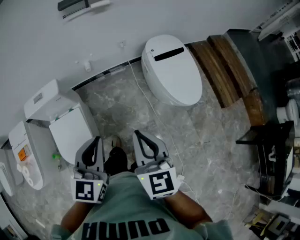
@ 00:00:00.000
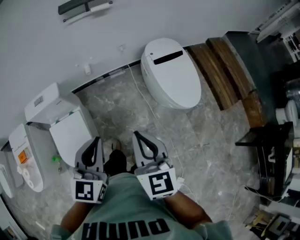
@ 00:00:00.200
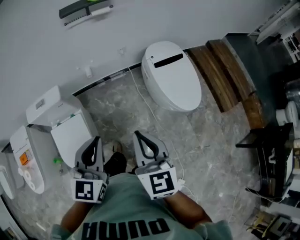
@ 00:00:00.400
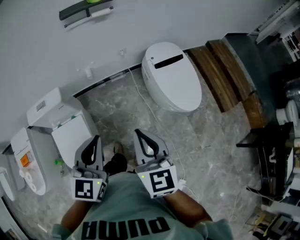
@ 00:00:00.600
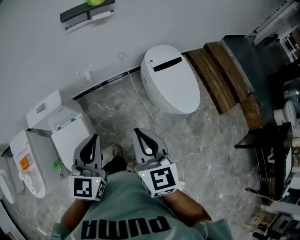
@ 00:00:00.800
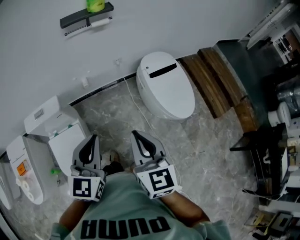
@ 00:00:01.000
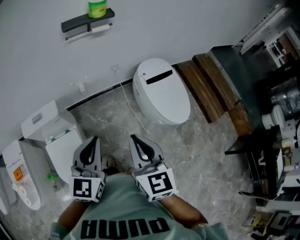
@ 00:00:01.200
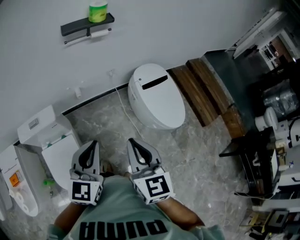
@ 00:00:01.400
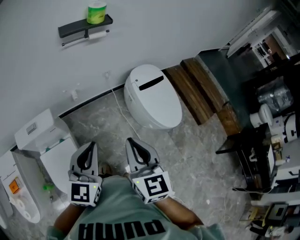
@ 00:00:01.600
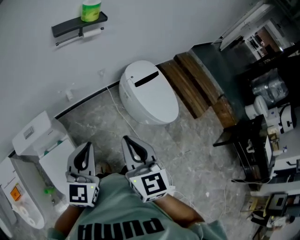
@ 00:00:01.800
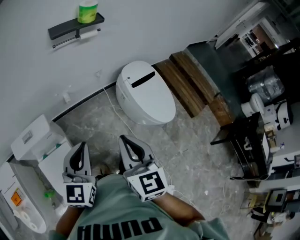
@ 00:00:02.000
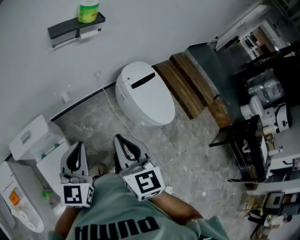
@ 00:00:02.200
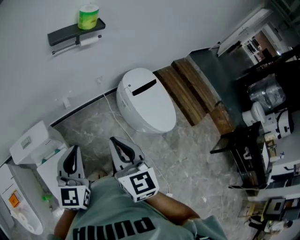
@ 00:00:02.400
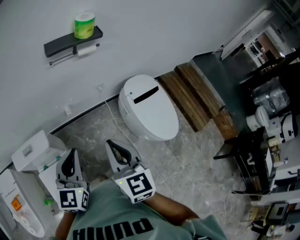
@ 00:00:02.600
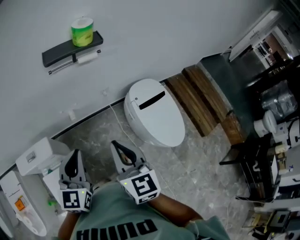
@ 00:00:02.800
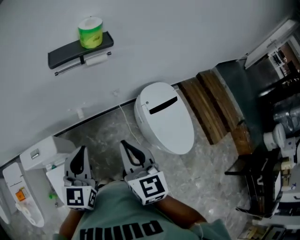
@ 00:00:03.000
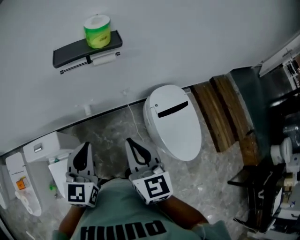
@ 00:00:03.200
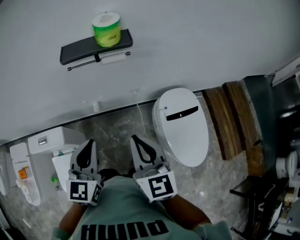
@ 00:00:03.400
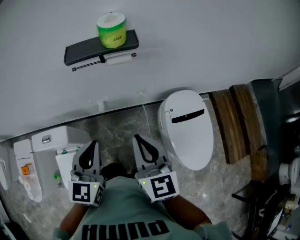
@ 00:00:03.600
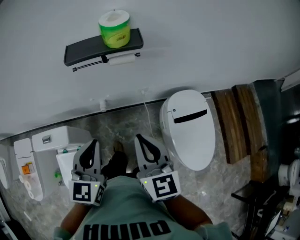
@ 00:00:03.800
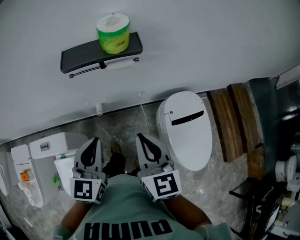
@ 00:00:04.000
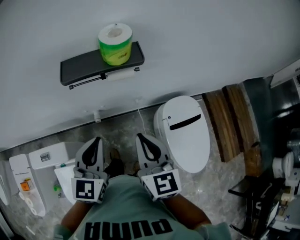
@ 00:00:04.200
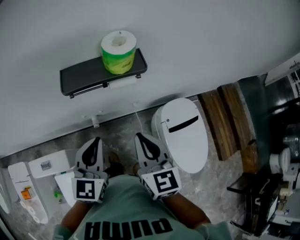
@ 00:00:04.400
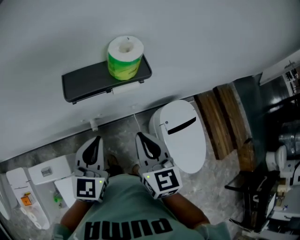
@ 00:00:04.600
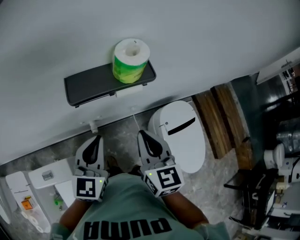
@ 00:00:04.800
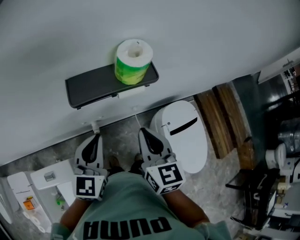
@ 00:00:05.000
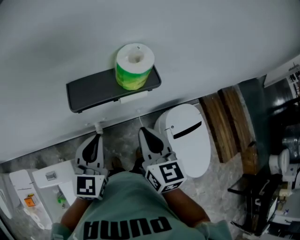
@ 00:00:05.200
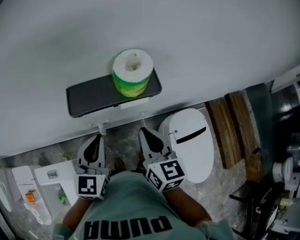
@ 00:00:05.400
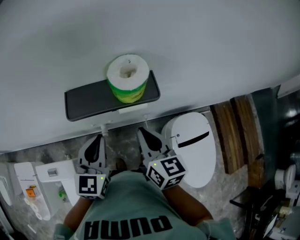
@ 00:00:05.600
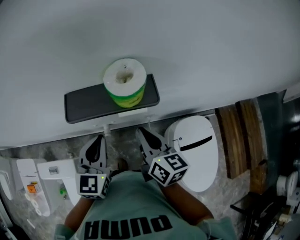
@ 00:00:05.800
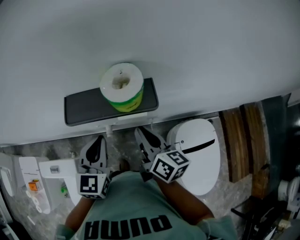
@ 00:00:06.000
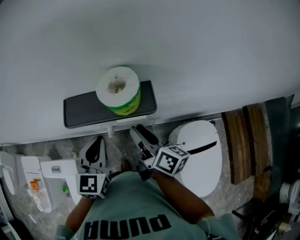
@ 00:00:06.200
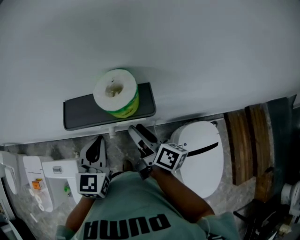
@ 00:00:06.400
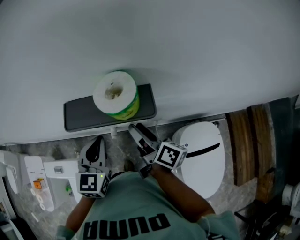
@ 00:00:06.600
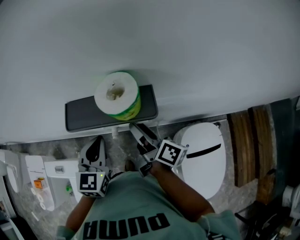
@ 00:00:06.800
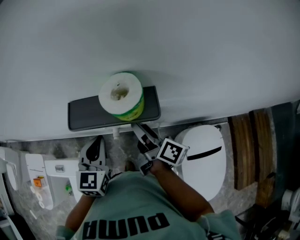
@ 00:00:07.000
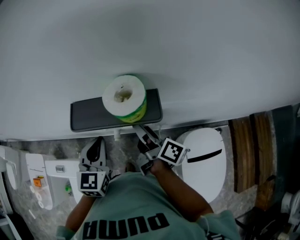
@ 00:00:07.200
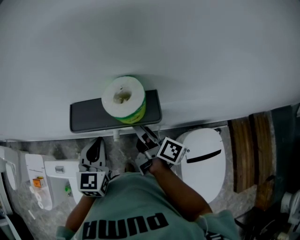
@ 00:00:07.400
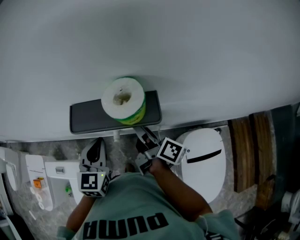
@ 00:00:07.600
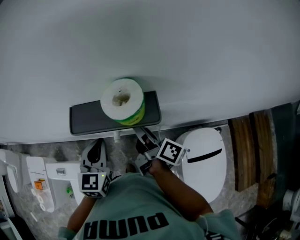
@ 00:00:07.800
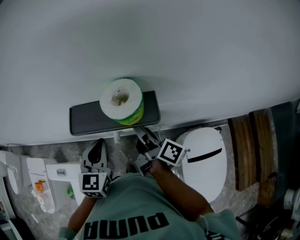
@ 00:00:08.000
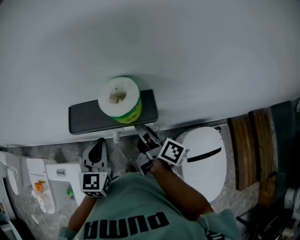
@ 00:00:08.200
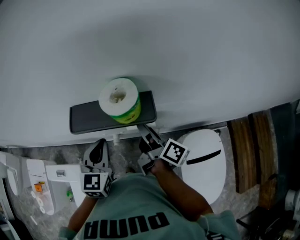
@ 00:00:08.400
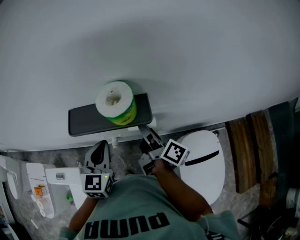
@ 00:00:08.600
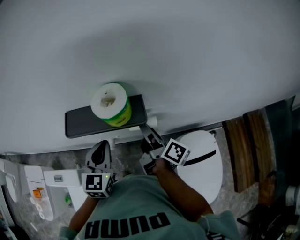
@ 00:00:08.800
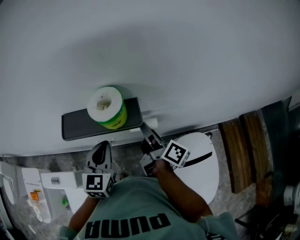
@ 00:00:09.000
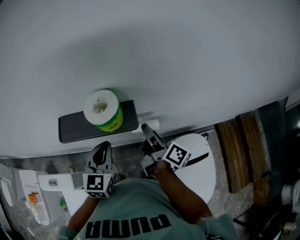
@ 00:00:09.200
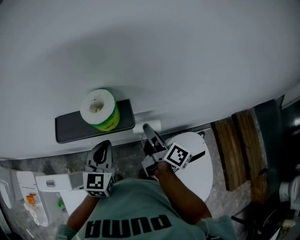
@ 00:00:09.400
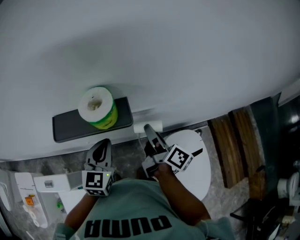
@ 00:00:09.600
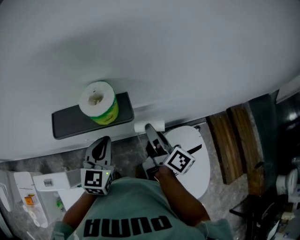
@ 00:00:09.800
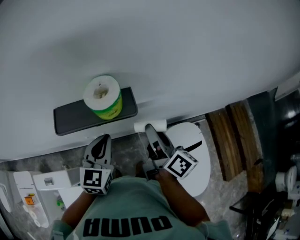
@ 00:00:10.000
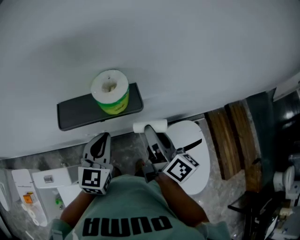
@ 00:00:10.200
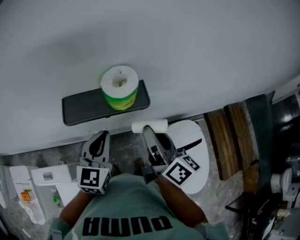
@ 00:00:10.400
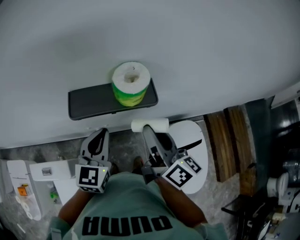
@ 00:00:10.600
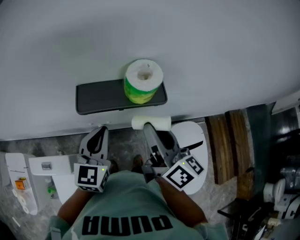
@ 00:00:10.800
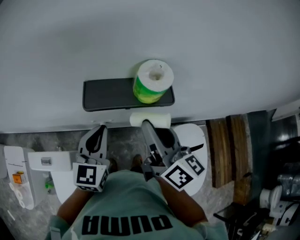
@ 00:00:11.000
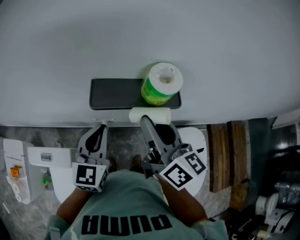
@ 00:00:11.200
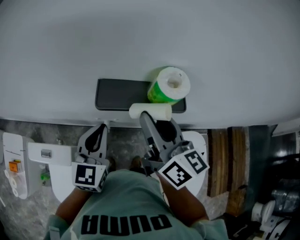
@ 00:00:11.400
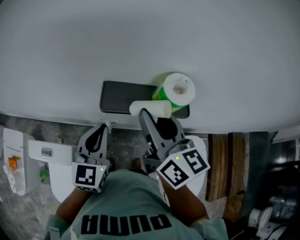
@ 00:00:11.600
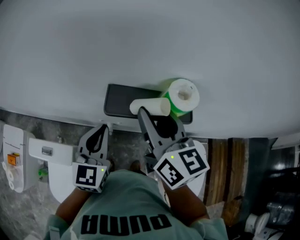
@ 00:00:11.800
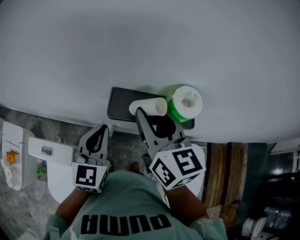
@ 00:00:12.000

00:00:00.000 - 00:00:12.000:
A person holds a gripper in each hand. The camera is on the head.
00:00:00.000 - 00:00:01.600: The left gripper goes some 10 cm to the left and forward; the right gripper goes approximately 10 cm to the left, forward and upward.
00:00:01.600 - 00:00:03.000: The two grippers go about 20 cm forward.
00:00:03.000 - 00:00:04.400: The grippers both shift forward by some 20 cm.
00:00:04.400 - 00:00:06.000: Both grippers move forward, some 15 cm. The right gripper swivels roughly 40 degrees.
00:00:06.000 - 00:00:07.600: The right gripper is displaced forward by some 5 cm, turns by about 40 degrees, and opens.
00:00:07.600 - 00:00:09.000: The two grippers go roughly 10 cm to the right.
00:00:09.000 - 00:00:10.400: The right gripper moves backward and upward, roughly 10 cm, and turns by some 30 degrees.
00:00:10.400 - 00:00:12.000: The left gripper goes some 15 cm to the left. The right gripper is displaced to the left, forward and upward by approximately 20 cm, and rotates approximately 40 degrees.

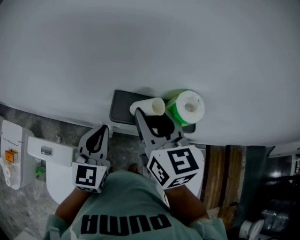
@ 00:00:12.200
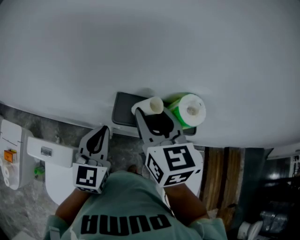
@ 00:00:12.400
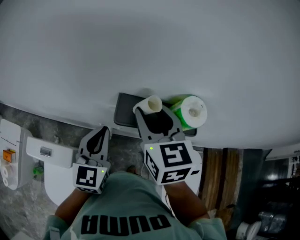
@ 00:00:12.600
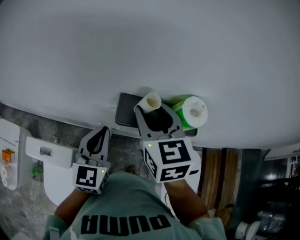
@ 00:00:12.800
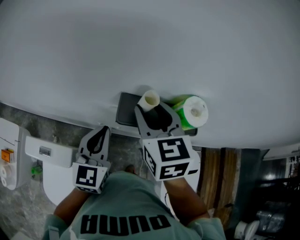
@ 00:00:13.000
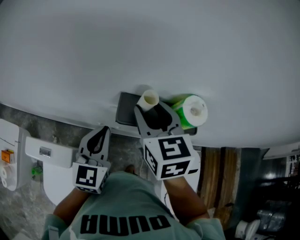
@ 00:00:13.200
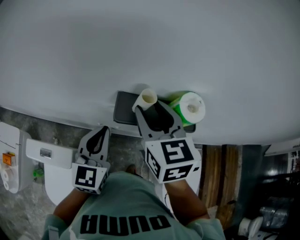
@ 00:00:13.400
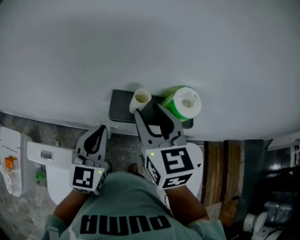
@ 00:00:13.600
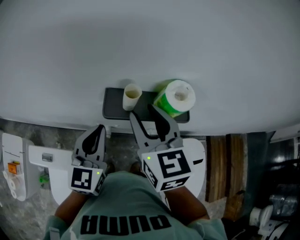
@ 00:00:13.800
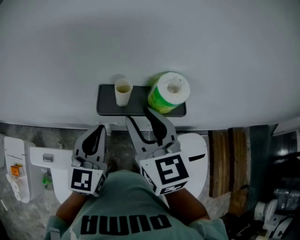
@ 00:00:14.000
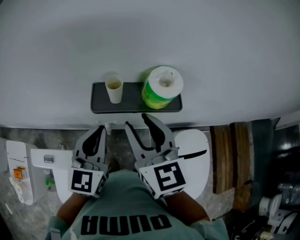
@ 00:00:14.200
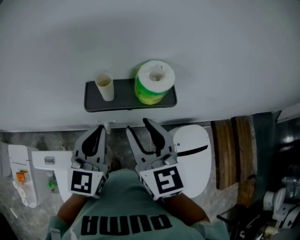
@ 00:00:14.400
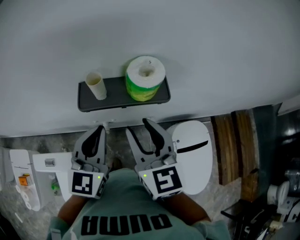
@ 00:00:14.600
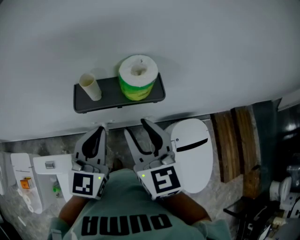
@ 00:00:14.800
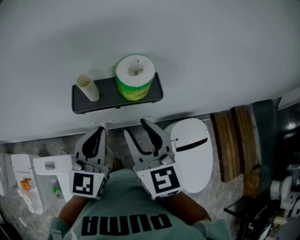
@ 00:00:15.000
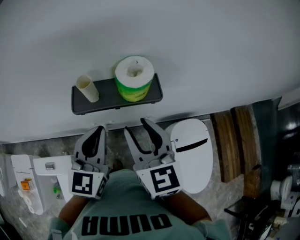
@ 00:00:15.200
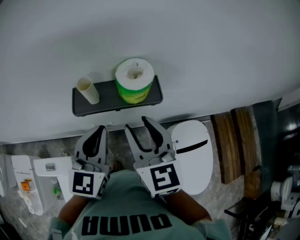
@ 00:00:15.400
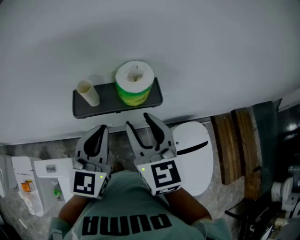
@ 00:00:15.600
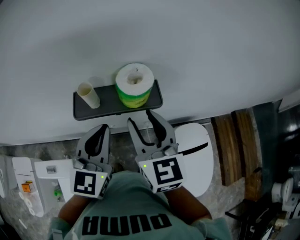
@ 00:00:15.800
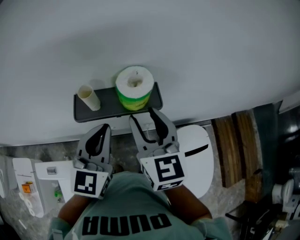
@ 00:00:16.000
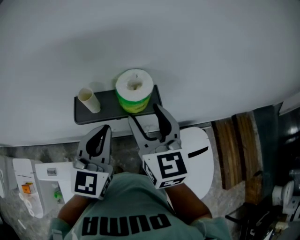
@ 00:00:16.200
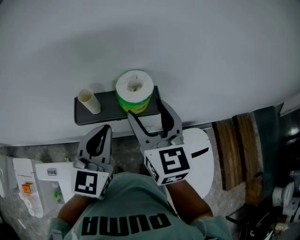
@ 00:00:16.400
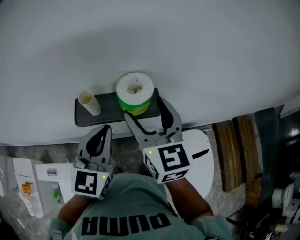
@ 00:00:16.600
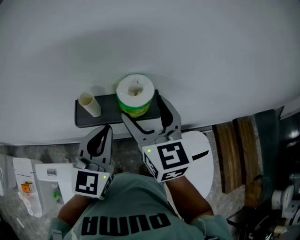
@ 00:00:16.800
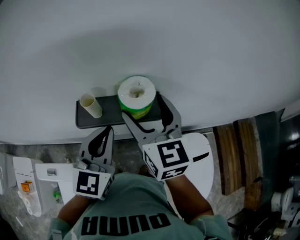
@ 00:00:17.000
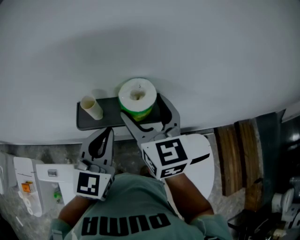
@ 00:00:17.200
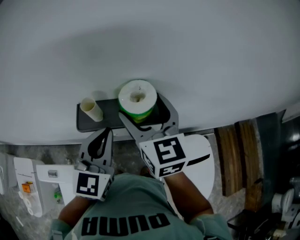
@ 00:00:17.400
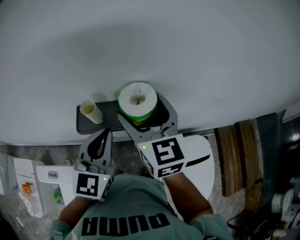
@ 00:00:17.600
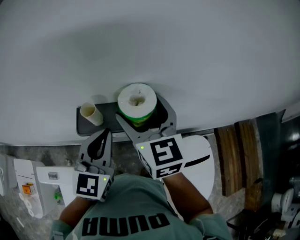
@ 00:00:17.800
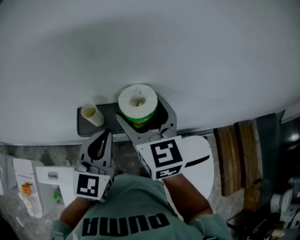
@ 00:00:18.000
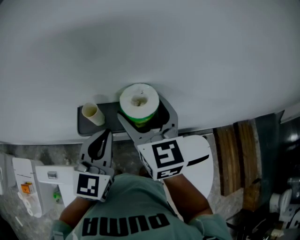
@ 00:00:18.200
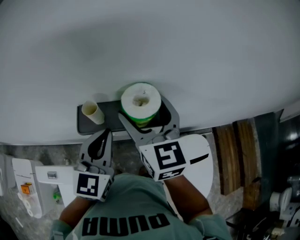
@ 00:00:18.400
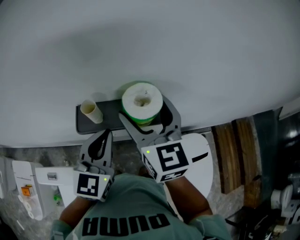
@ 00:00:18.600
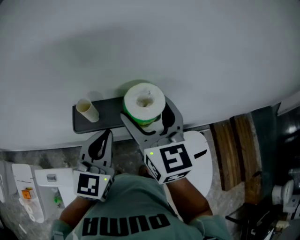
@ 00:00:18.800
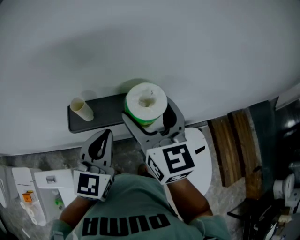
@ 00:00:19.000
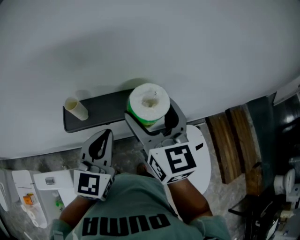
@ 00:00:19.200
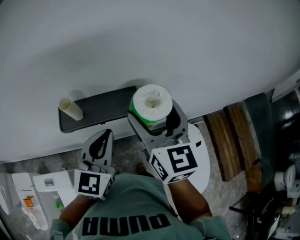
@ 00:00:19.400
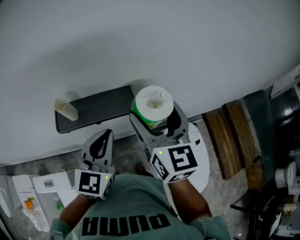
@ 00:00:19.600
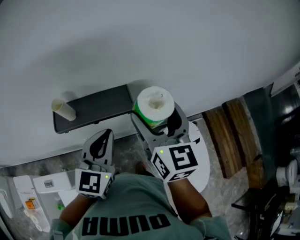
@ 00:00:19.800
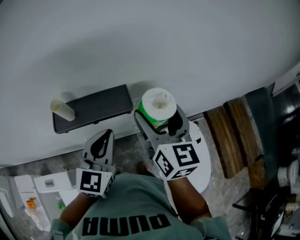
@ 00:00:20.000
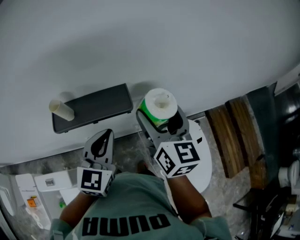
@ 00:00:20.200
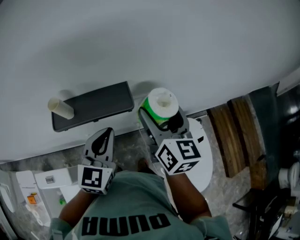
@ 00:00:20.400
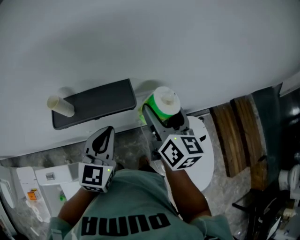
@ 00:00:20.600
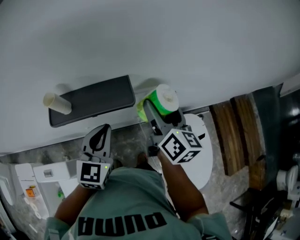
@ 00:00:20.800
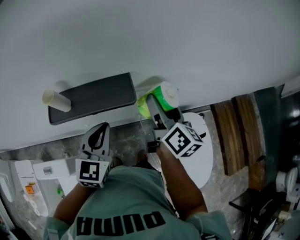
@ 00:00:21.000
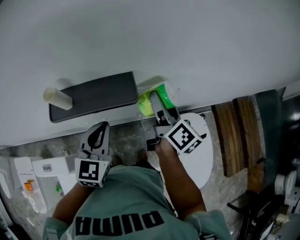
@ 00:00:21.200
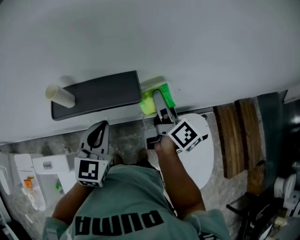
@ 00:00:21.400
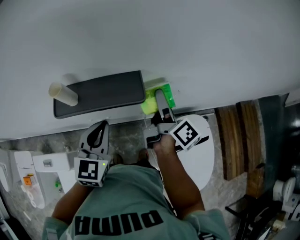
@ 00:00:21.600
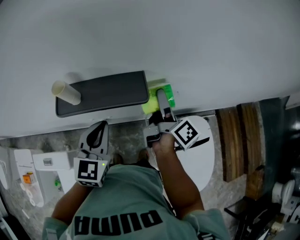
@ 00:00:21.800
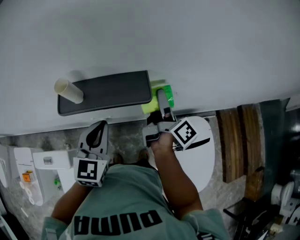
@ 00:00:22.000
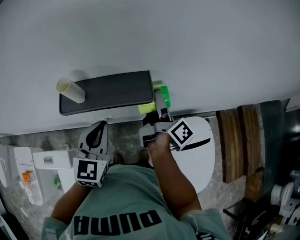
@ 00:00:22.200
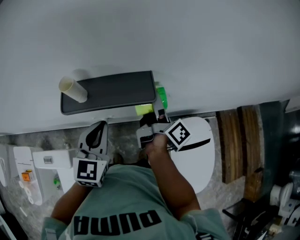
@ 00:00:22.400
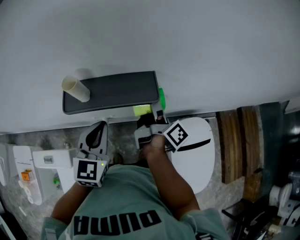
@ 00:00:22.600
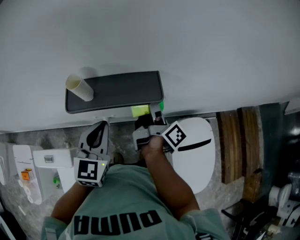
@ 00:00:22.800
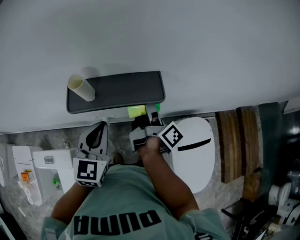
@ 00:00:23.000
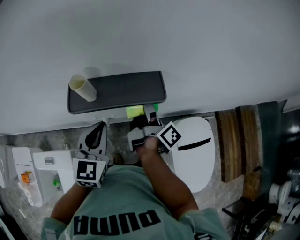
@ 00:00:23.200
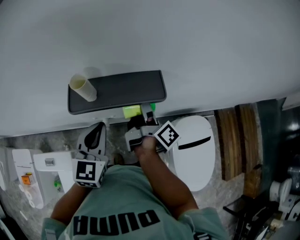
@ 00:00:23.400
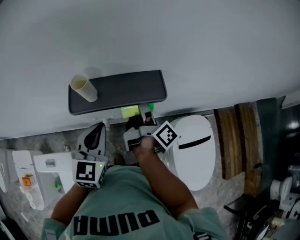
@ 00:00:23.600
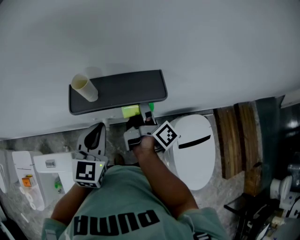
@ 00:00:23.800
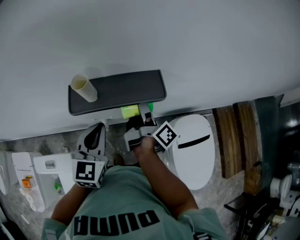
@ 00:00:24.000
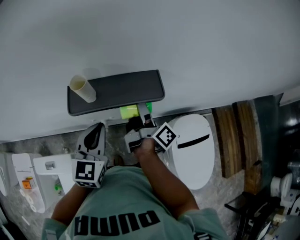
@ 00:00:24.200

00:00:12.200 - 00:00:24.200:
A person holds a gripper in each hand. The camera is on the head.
00:00:12.200 - 00:00:13.800: The grippers stay close to where they were, moving slightly.
00:00:13.800 - 00:00:15.200: The left gripper goes roughly 10 cm to the right. The right gripper travels to the right and backward by roughly 10 cm.
00:00:15.200 - 00:00:16.600: The right gripper shifts approximately 10 cm forward, and opens its fingers.
00:00:16.600 - 00:00:18.200: There are only small adjustments of the grippers.
00:00:18.200 - 00:00:19.800: The right gripper heads to the right and backward, covering roughly 15 cm; the left gripper moves to the right, about 10 cm.
00:00:19.800 - 00:00:21.200: The right gripper goes roughly 15 cm downward and forward, and twists about 50 degrees clockwise, seen from behind. Meanwhile the left gripper heads downward, covering roughly 5 cm.
00:00:21.200 - 00:00:22.600: The grippers both shift to the left by some 5 cm. The right gripper swivels about 30 degrees.
00:00:22.600 - 00:00:24.200: The right gripper heads to the left, covering roughly 5 cm.
